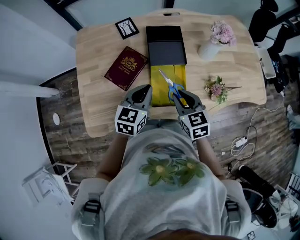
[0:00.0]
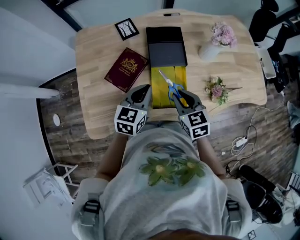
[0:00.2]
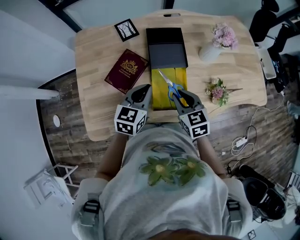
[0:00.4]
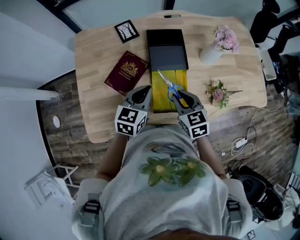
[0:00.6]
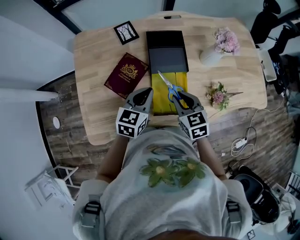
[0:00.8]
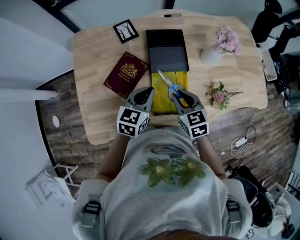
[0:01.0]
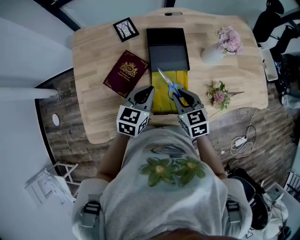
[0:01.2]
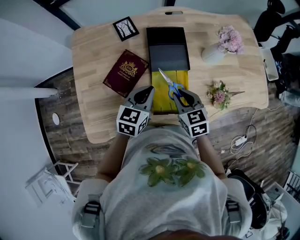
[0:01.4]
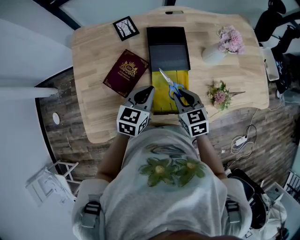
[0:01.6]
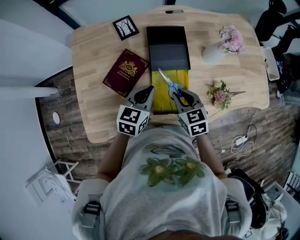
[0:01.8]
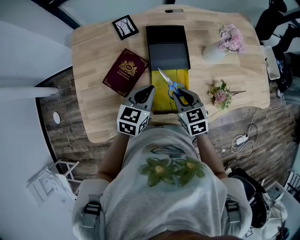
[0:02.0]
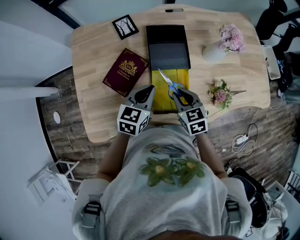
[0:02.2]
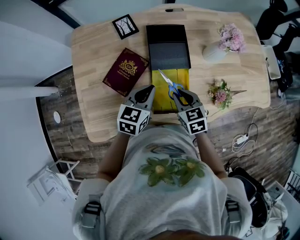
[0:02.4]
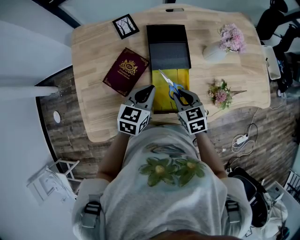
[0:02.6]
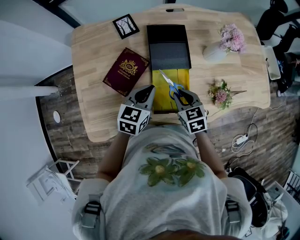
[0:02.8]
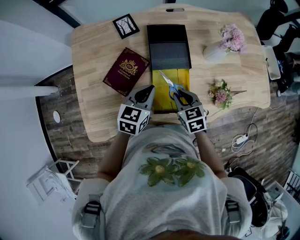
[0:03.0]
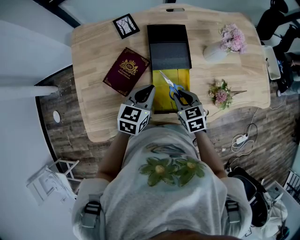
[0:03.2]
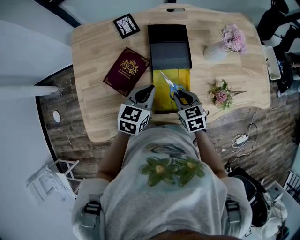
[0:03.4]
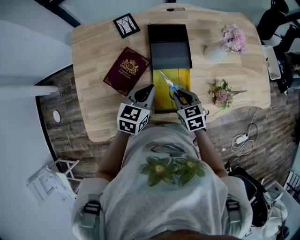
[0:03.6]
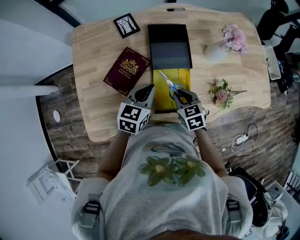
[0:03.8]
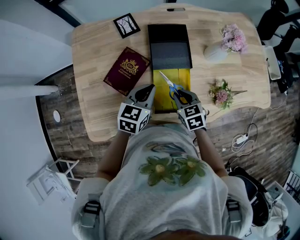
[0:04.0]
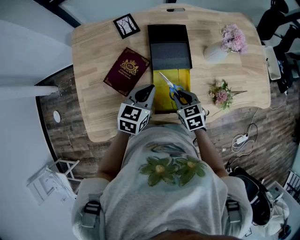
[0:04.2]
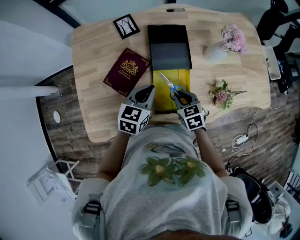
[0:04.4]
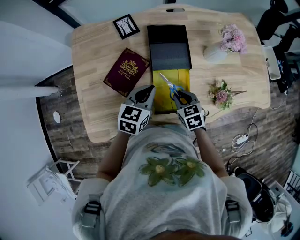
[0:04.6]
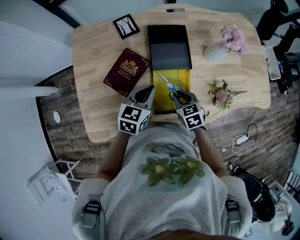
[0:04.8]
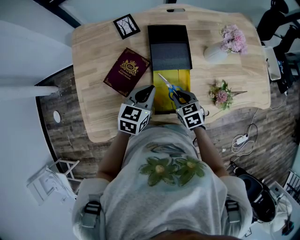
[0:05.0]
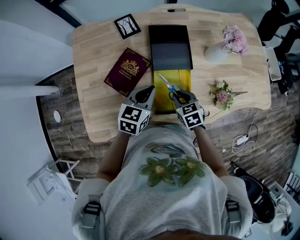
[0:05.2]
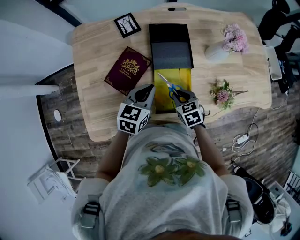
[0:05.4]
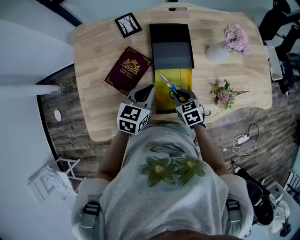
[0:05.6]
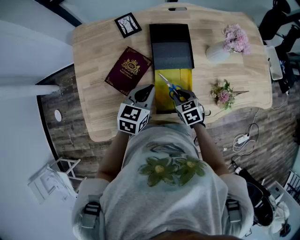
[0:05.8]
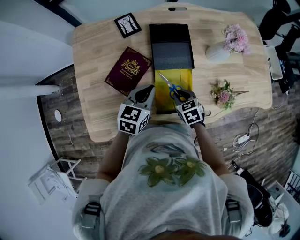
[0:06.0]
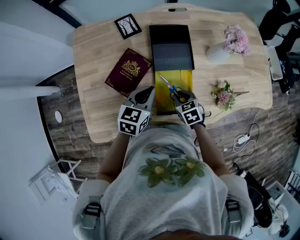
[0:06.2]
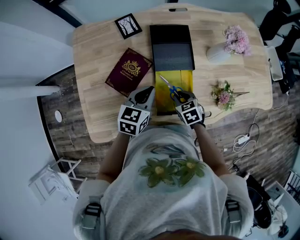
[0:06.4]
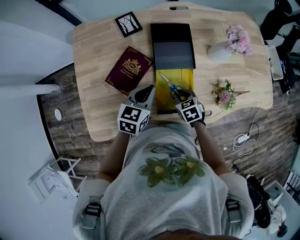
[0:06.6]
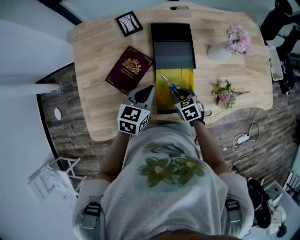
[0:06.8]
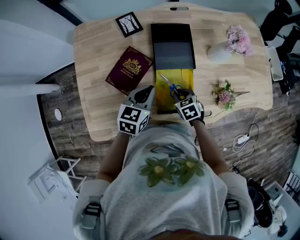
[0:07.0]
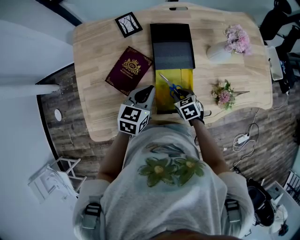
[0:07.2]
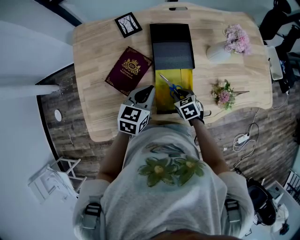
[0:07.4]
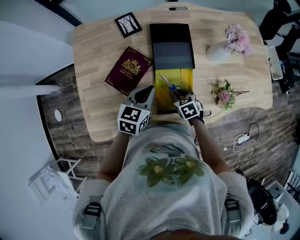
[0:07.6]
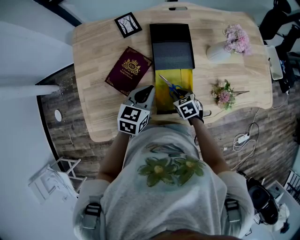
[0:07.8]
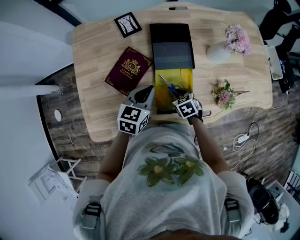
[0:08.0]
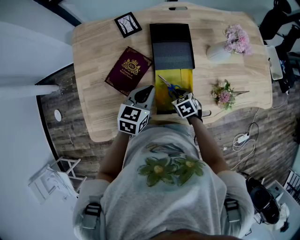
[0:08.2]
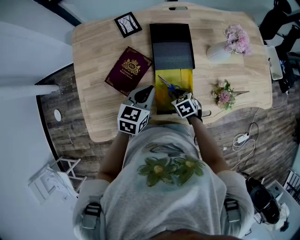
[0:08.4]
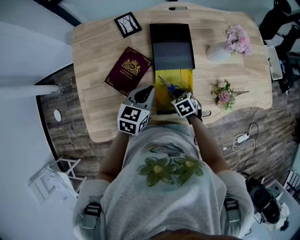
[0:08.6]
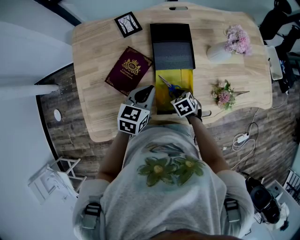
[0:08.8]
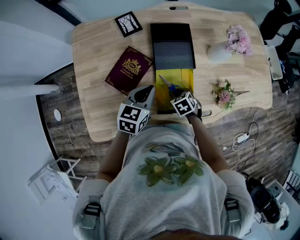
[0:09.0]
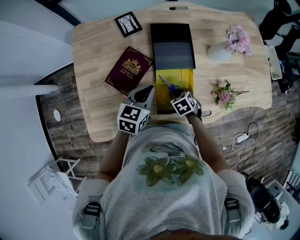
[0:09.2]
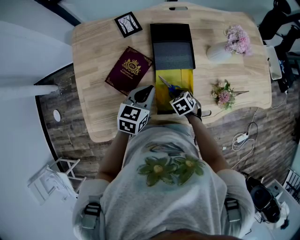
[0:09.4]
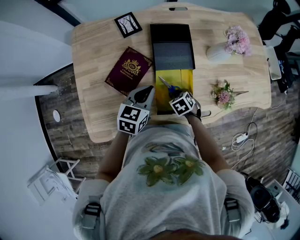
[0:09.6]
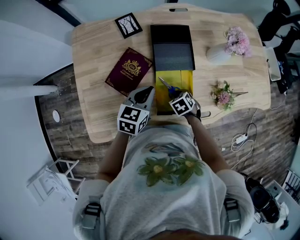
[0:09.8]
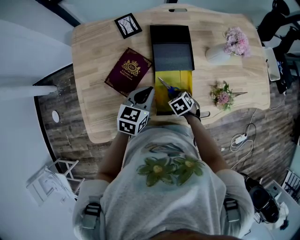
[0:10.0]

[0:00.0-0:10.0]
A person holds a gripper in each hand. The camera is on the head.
0:00.0 to 0:01.4: The left gripper moves approximately 5 cm. The right gripper heads forward, covering approximately 5 cm.
0:01.4 to 0:02.8: There are only small adjustments of the grippers.
0:02.8 to 0:04.2: The grippers move only a little.
0:04.2 to 0:05.8: The grippers stay close to where they were, moving slightly.
0:05.8 to 0:08.6: There are only small adjustments of the grippers.
0:08.6 to 0:10.0: The grippers move only a little.

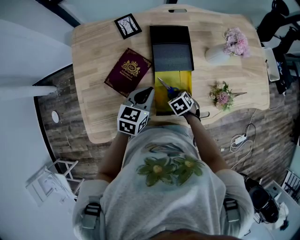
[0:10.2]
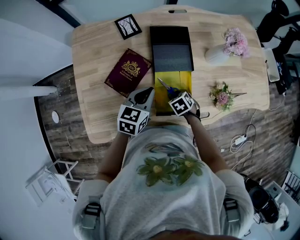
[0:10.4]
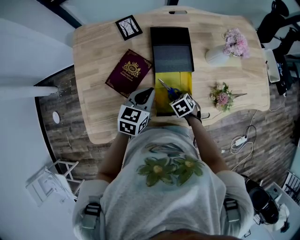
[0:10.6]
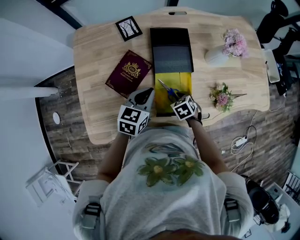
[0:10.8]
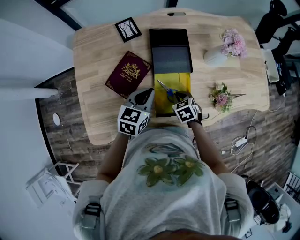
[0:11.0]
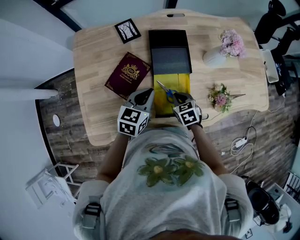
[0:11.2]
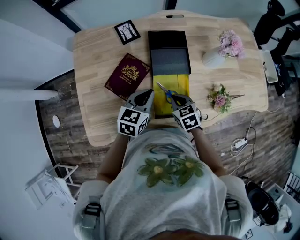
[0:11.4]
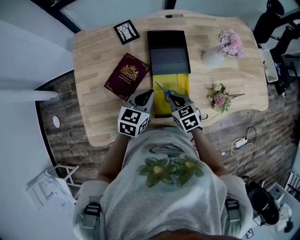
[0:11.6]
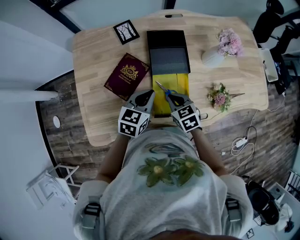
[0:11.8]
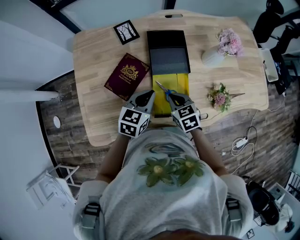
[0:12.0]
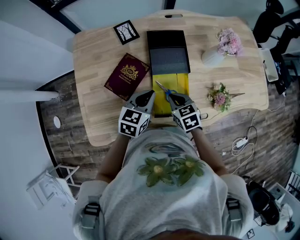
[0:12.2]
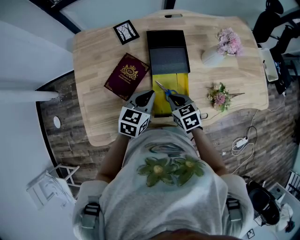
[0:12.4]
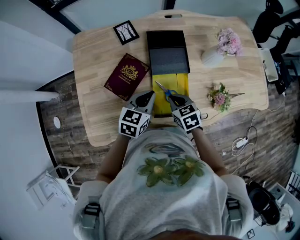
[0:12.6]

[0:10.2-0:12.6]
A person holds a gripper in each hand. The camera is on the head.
0:10.2 to 0:11.4: The right gripper moves upward, approximately 10 cm, and rotates approximately 20 degrees.
0:11.4 to 0:12.6: The grippers move only a little.

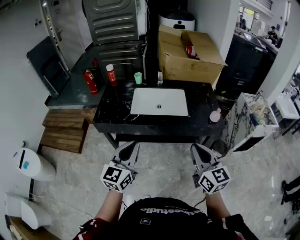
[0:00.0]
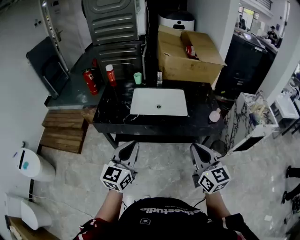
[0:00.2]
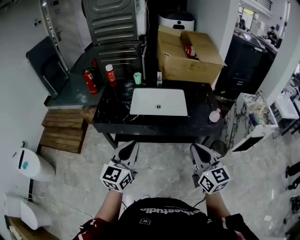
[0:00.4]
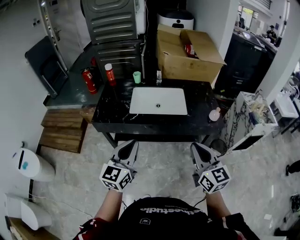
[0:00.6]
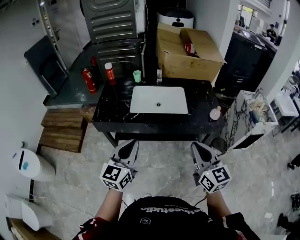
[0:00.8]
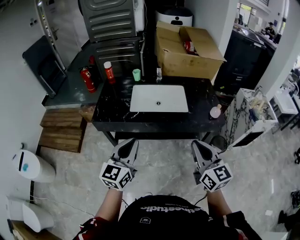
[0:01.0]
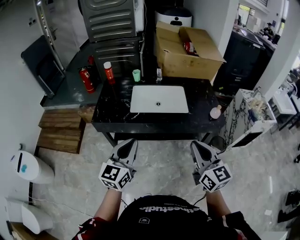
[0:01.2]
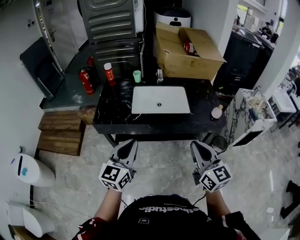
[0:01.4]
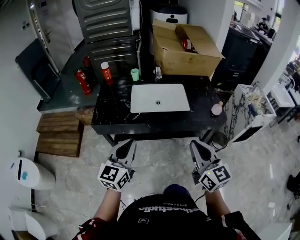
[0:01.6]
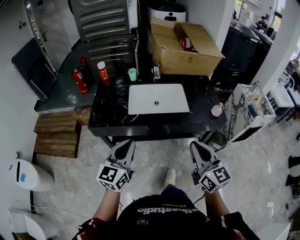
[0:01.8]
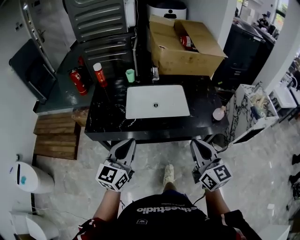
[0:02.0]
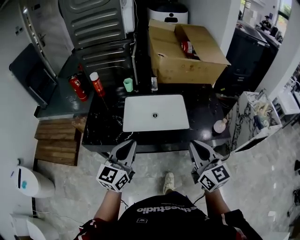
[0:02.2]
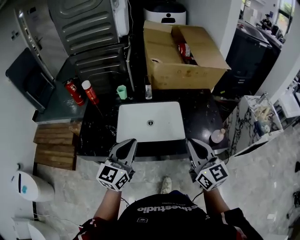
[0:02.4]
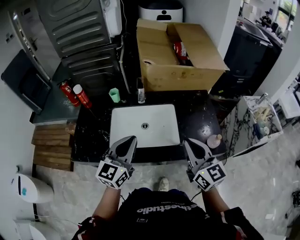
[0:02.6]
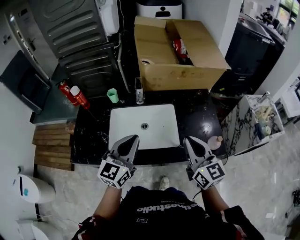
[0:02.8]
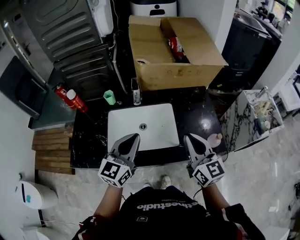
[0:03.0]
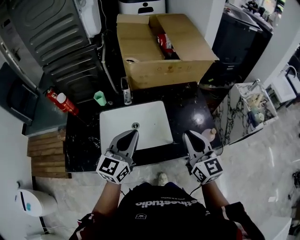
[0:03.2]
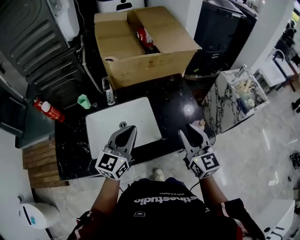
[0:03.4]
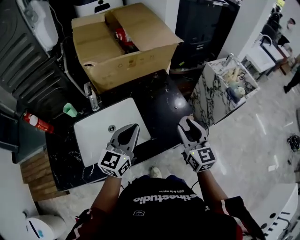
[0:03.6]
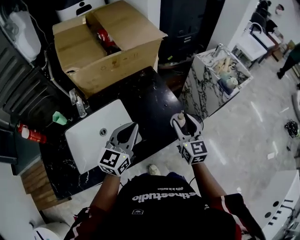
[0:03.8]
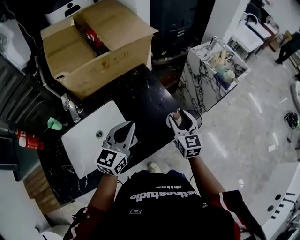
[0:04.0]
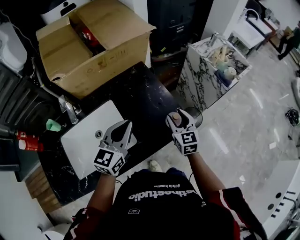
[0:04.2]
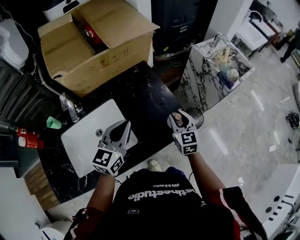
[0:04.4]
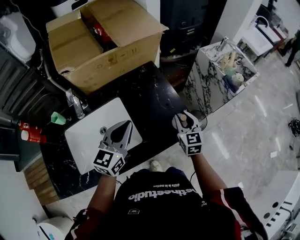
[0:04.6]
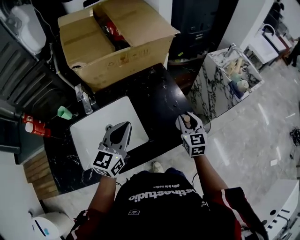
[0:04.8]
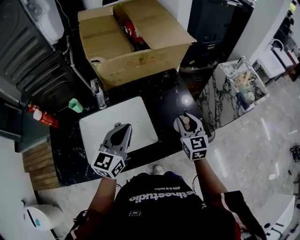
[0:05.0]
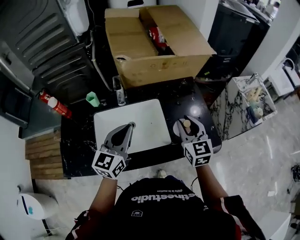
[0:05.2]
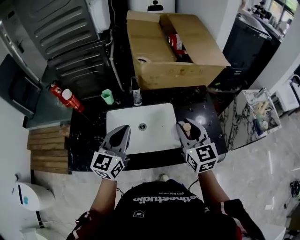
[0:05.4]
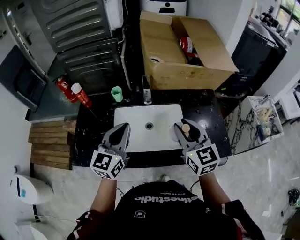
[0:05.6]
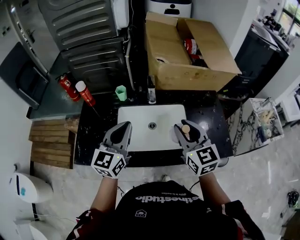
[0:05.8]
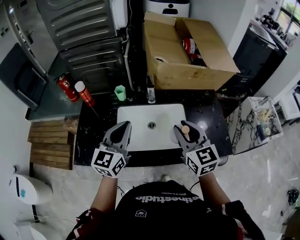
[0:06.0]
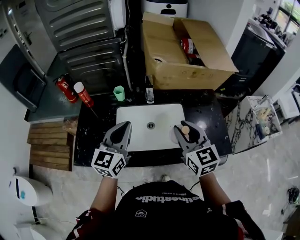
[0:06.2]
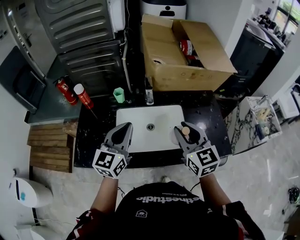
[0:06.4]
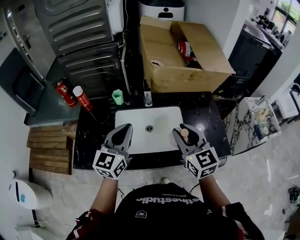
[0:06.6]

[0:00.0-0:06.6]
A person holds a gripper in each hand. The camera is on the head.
0:00.0 to 0:01.6: The two grippers go some 5 cm to the left.
0:01.6 to 0:03.2: The right gripper travels forward by roughly 35 cm; the left gripper moves forward and to the right, some 40 cm.
0:03.2 to 0:05.0: The right gripper changes its angle by about 20 degrees, and opens its fingers.
0:05.0 to 0:06.6: The right gripper goes approximately 30 cm to the left and upward, and changes its angle by some 30 degrees. The left gripper moves to the left, approximately 20 cm.

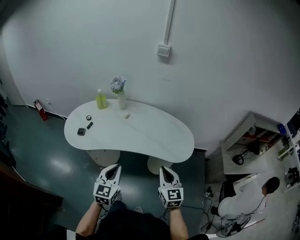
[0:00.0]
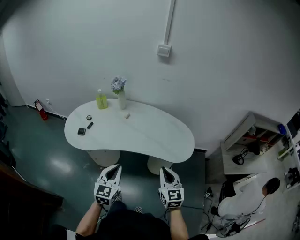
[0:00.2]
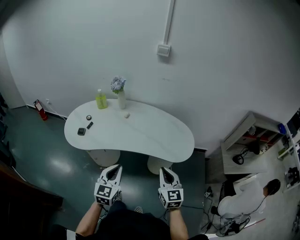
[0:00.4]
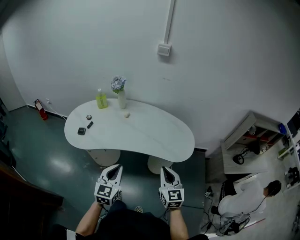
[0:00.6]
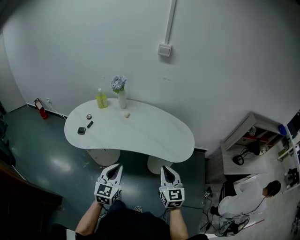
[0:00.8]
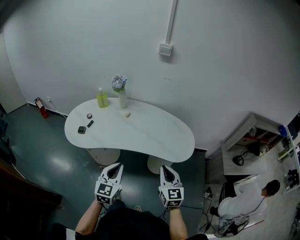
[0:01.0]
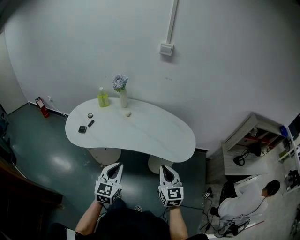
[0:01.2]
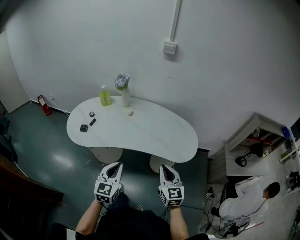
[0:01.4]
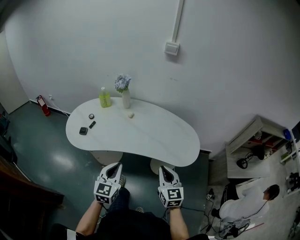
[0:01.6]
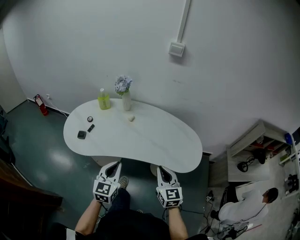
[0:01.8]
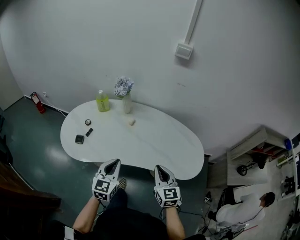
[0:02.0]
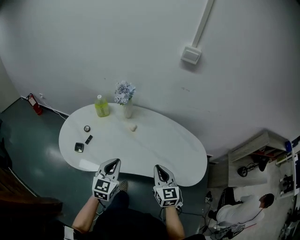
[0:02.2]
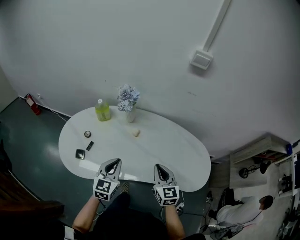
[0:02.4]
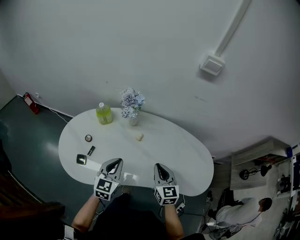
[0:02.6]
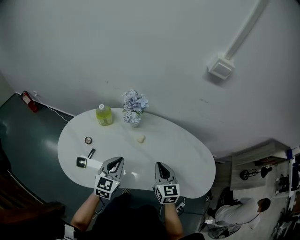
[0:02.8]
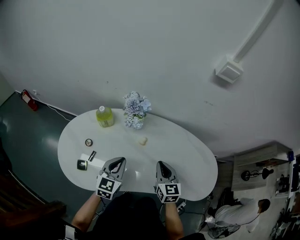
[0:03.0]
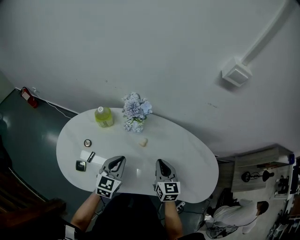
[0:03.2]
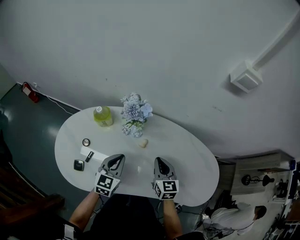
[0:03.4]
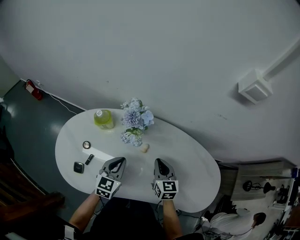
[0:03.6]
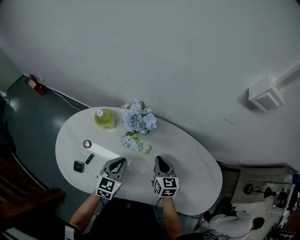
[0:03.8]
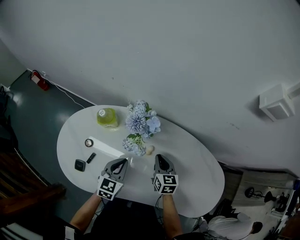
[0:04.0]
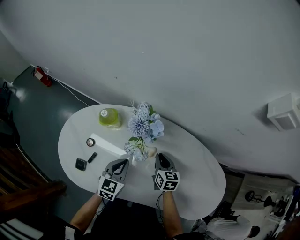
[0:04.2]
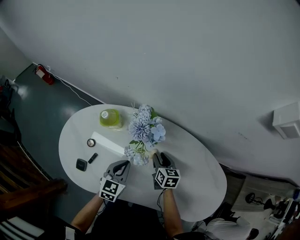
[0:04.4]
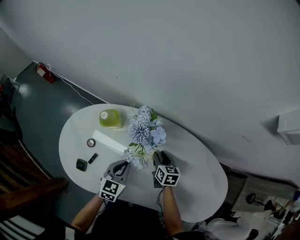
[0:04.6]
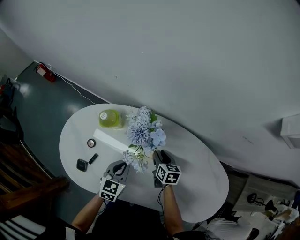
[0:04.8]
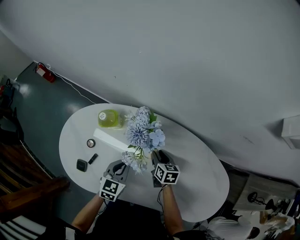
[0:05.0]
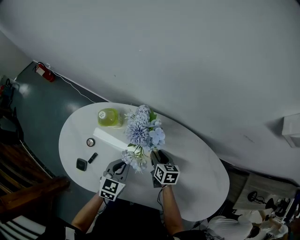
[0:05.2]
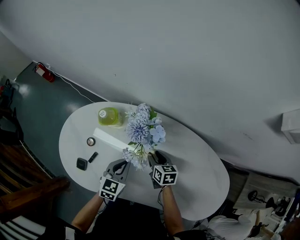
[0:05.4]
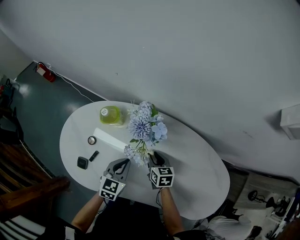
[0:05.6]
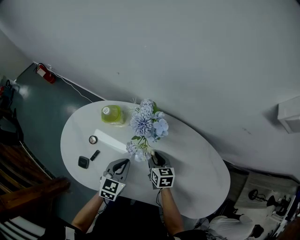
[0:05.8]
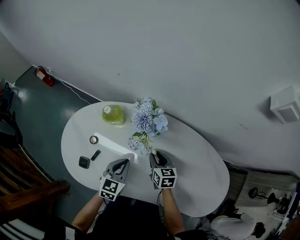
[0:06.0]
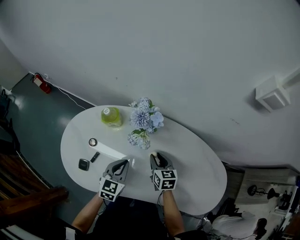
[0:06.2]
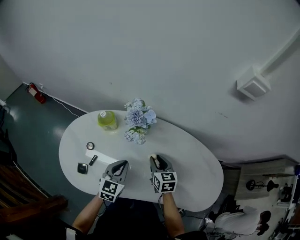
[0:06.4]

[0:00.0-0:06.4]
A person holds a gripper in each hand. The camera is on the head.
0:00.0 to 0:01.6: The grippers move only a little.
0:01.6 to 0:03.2: Both grippers are carried forward and to the left, approximately 40 cm.
0:03.2 to 0:04.8: The left gripper heads downward and forward, covering some 15 cm, while the right gripper goes some 25 cm downward and forward, swivels roughly 30 degrees, and opens its fingers.
0:04.8 to 0:06.4: The left gripper goes roughly 10 cm upward and backward. The right gripper goes roughly 15 cm upward and backward.
